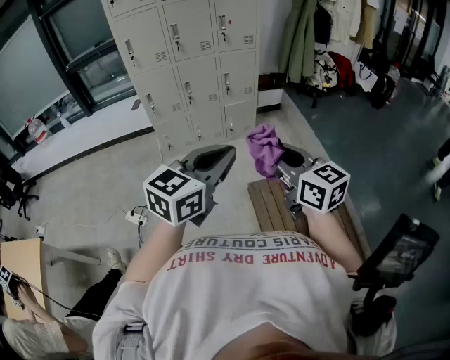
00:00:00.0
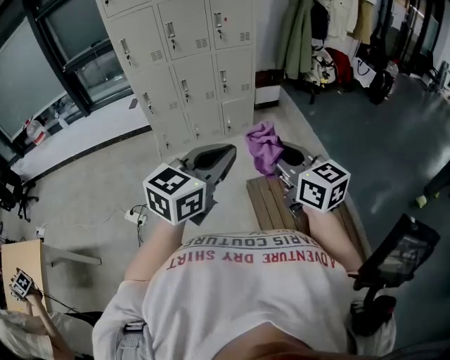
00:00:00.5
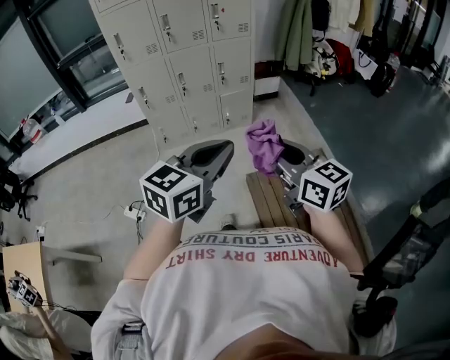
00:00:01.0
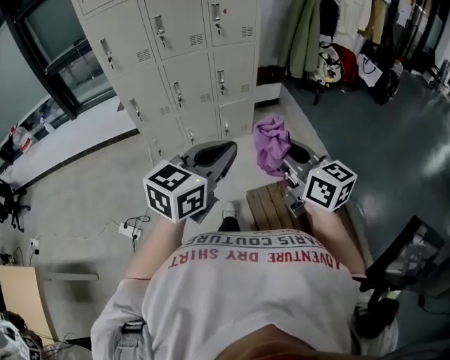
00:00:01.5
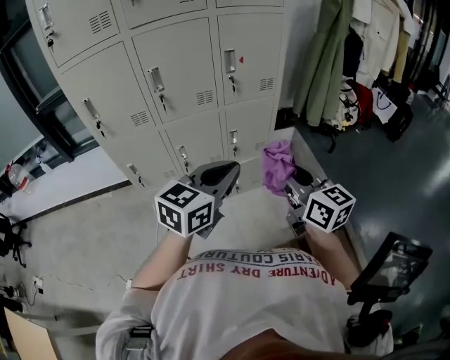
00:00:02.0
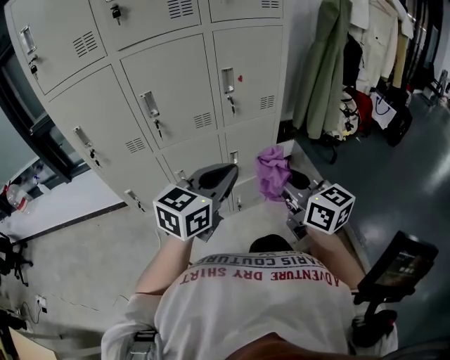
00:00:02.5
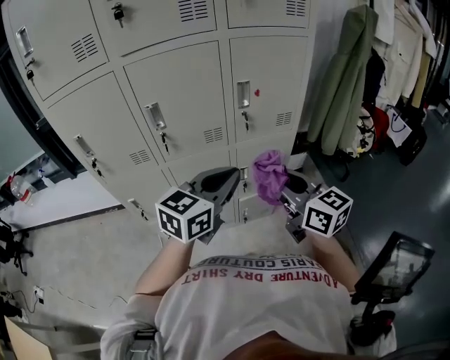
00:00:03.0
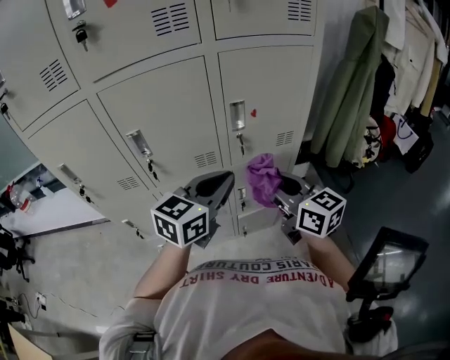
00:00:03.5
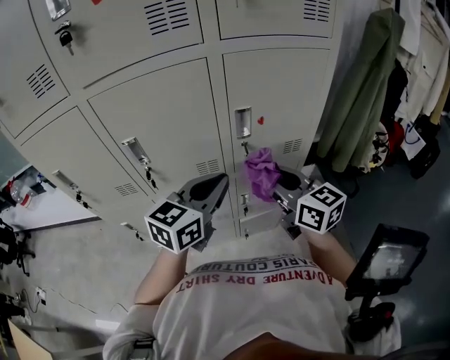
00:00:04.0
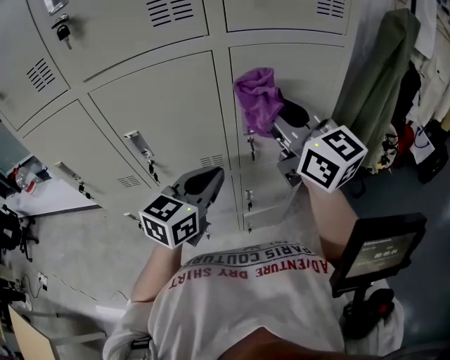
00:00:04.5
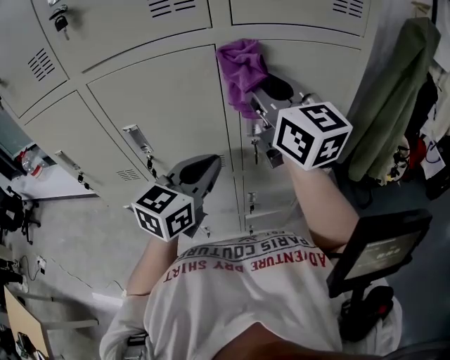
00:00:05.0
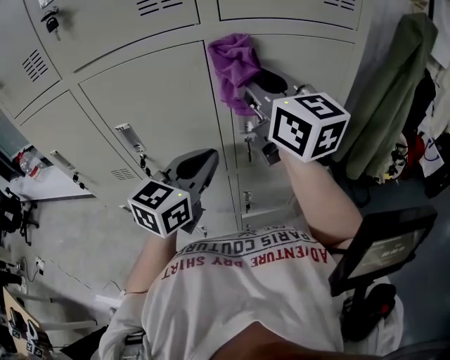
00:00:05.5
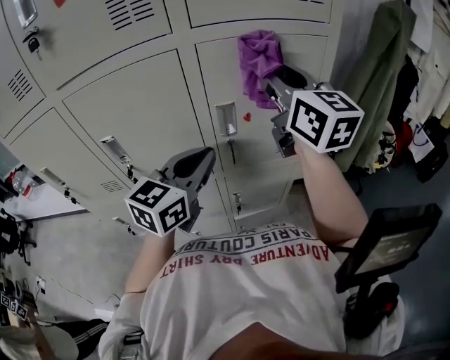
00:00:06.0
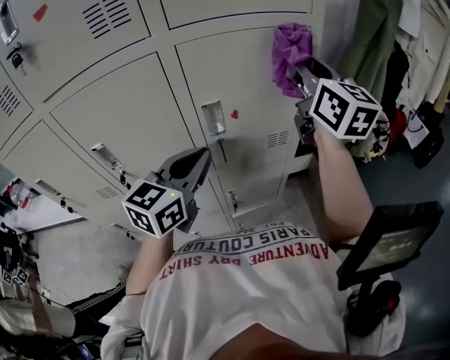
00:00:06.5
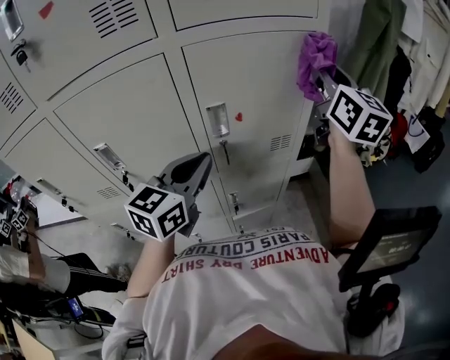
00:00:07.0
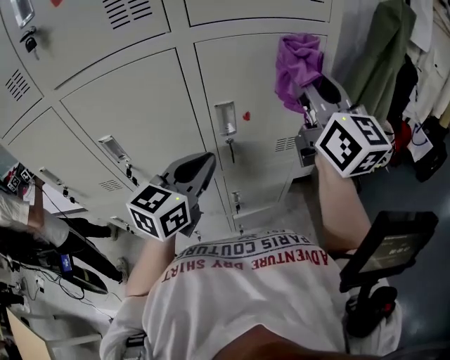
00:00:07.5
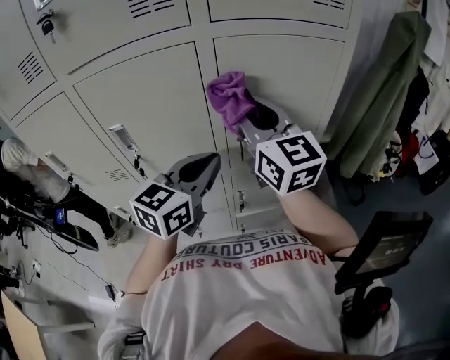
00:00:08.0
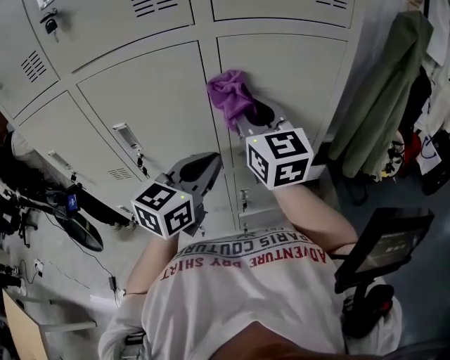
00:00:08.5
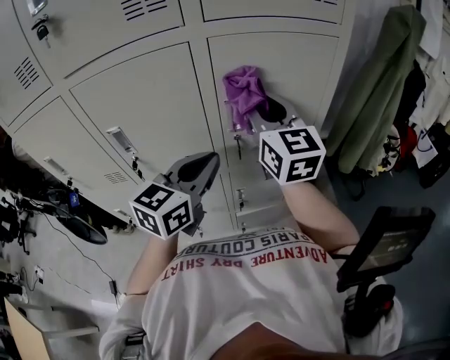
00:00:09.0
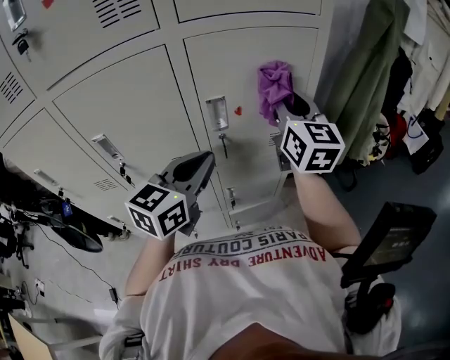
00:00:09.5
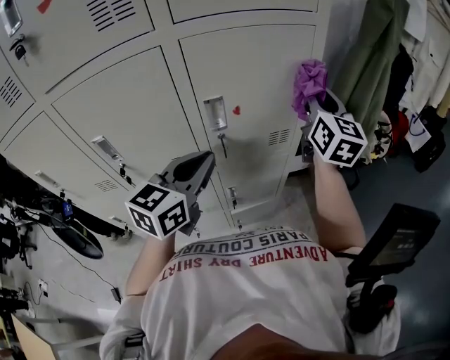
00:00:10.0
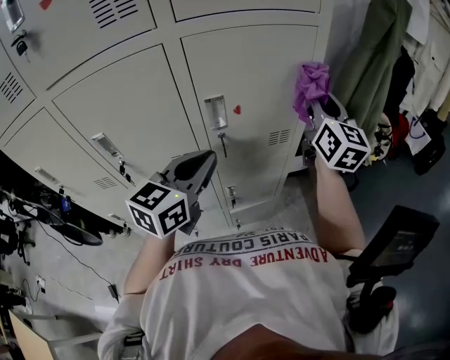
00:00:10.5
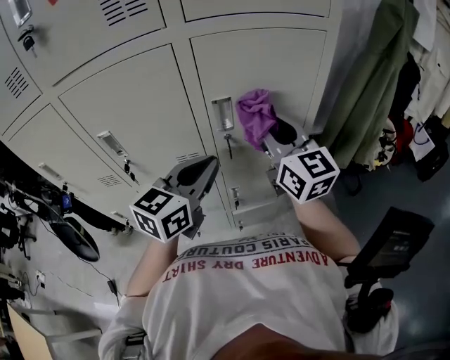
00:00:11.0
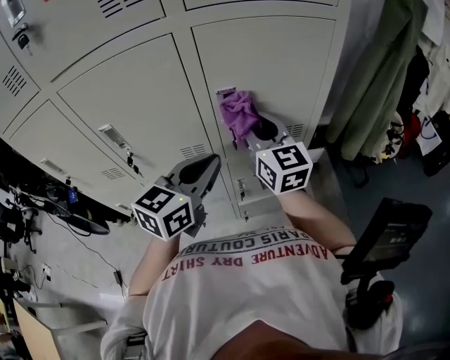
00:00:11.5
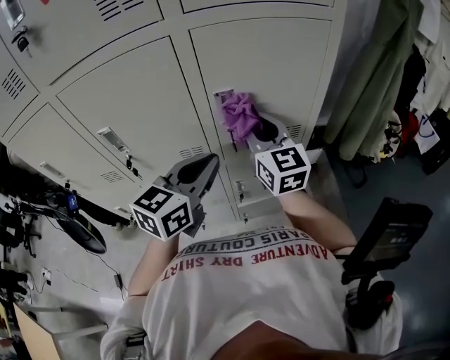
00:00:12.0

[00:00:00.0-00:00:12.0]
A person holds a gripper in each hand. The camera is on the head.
00:00:00.0 to 00:00:02.0: The pair of grippers is taken forward, approximately 50 cm.
00:00:02.0 to 00:00:04.0: The two grippers go roughly 35 cm forward.
00:00:04.0 to 00:00:06.0: The right gripper moves upward and forward, some 20 cm, and rotates some 20 degrees; the left gripper moves forward, about 5 cm.
00:00:06.0 to 00:00:08.0: The right gripper moves to the left and downward, roughly 10 cm.
00:00:08.0 to 00:00:10.0: The right gripper heads to the right, covering some 20 cm, and changes its angle by roughly 30 degrees.
00:00:10.0 to 00:00:12.0: The right gripper moves to the left and downward, about 20 cm, and rotates approximately 20 degrees.

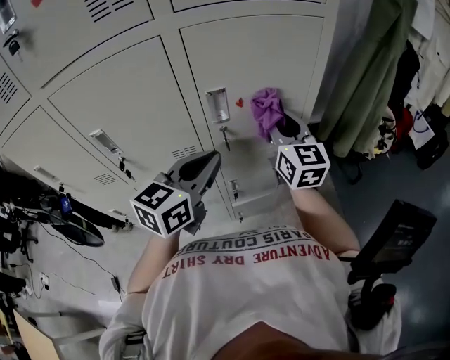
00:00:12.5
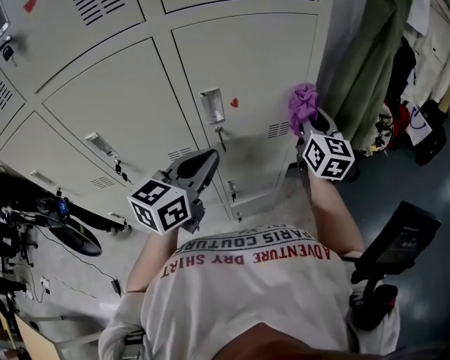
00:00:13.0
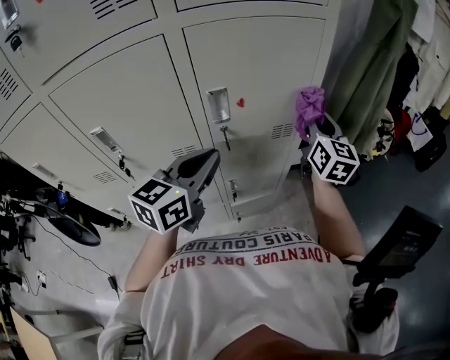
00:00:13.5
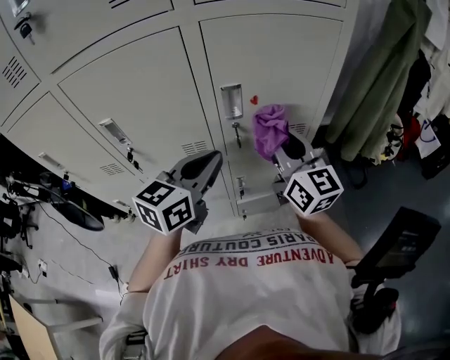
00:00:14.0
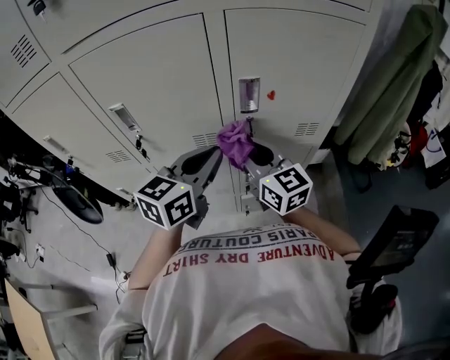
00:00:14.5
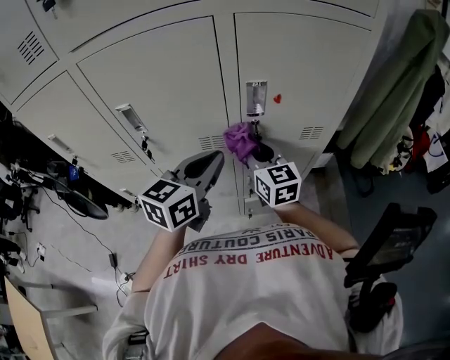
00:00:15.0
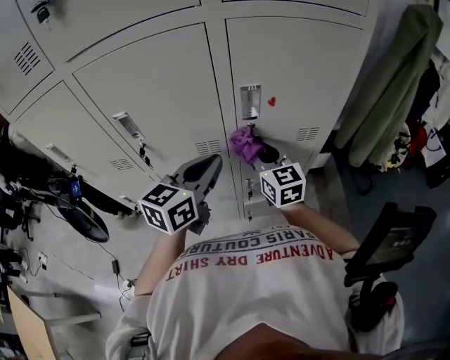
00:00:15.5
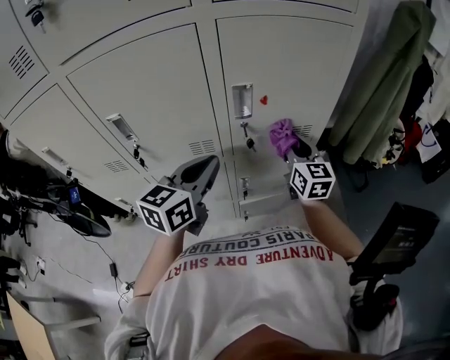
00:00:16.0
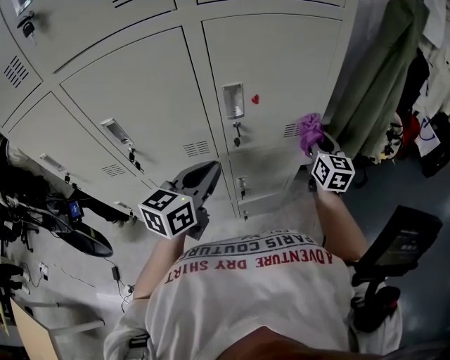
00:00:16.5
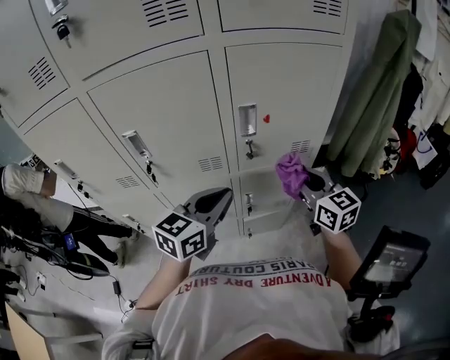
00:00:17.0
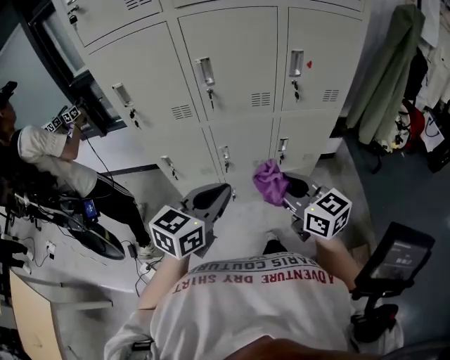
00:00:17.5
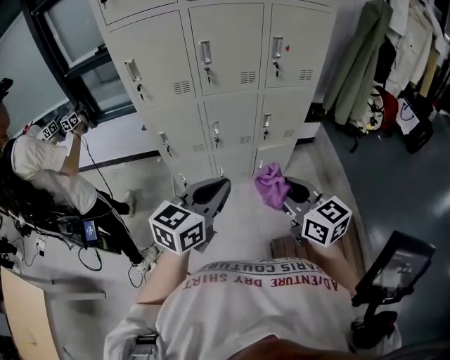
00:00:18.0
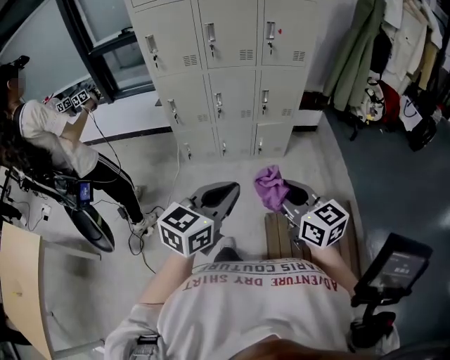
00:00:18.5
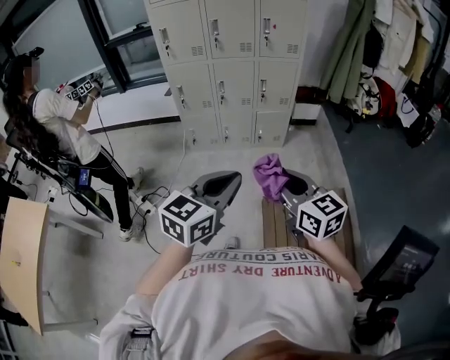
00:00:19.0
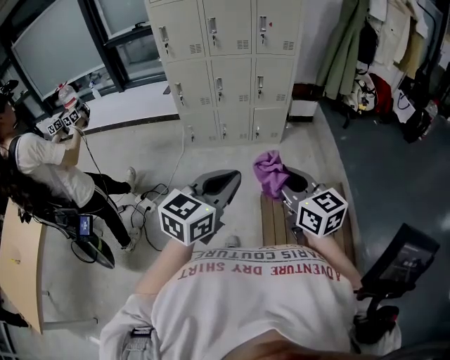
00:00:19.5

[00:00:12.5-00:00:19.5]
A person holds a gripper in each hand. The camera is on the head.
00:00:12.5 to 00:00:14.5: The right gripper shifts roughly 15 cm to the left, backward and downward, and turns by approximately 30 degrees. The left gripper heads to the left, covering approximately 5 cm.
00:00:14.5 to 00:00:16.0: The right gripper goes about 15 cm to the right and forward, and rotates roughly 30 degrees.
00:00:16.0 to 00:00:17.5: The left gripper heads backward, covering some 30 cm; the right gripper heads backward and to the left, covering roughly 40 cm, and changes its angle by about 30 degrees.
00:00:17.5 to 00:00:19.5: Both grippers are carried backward, about 60 cm.

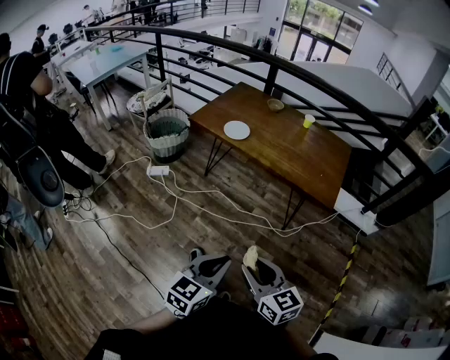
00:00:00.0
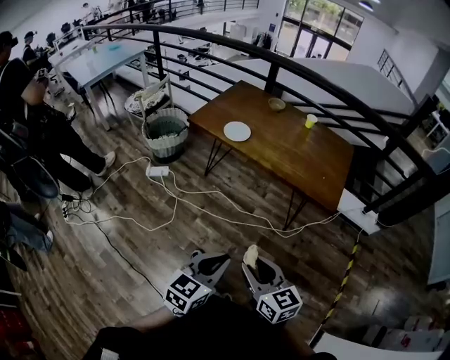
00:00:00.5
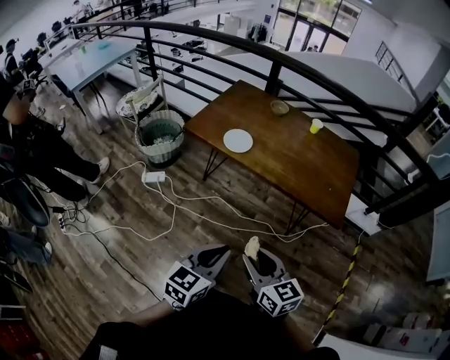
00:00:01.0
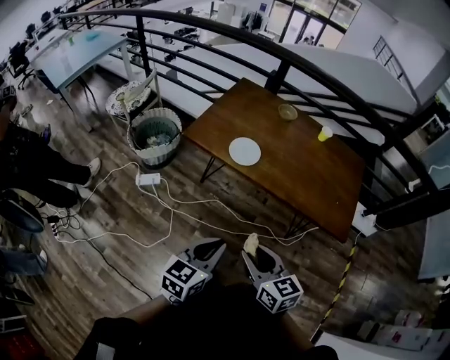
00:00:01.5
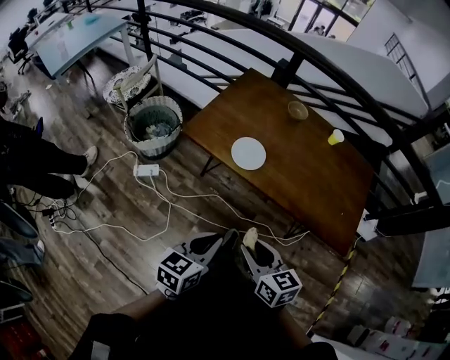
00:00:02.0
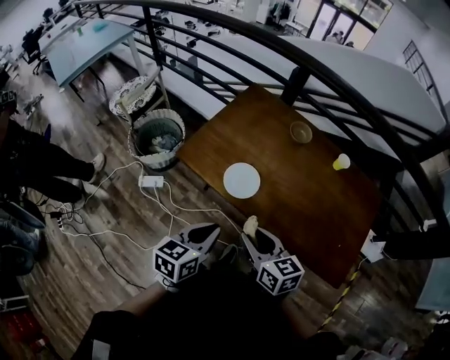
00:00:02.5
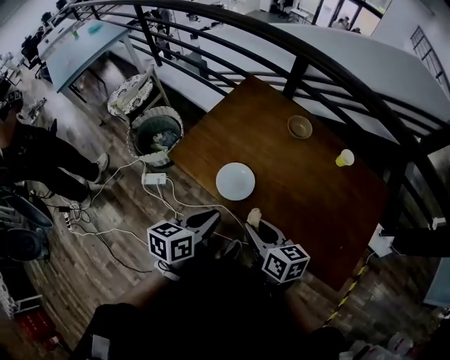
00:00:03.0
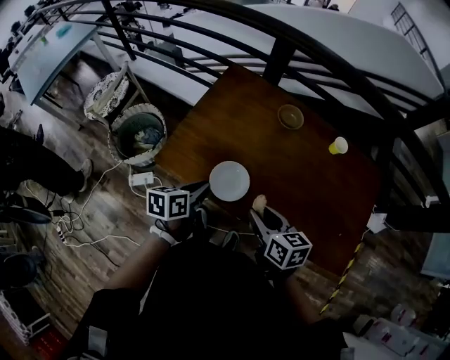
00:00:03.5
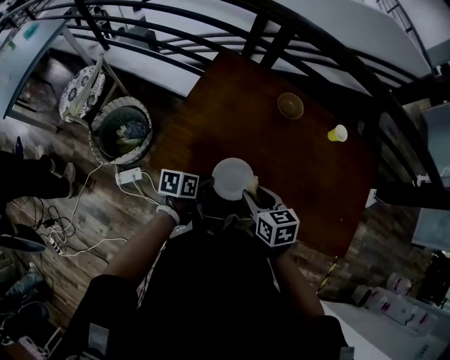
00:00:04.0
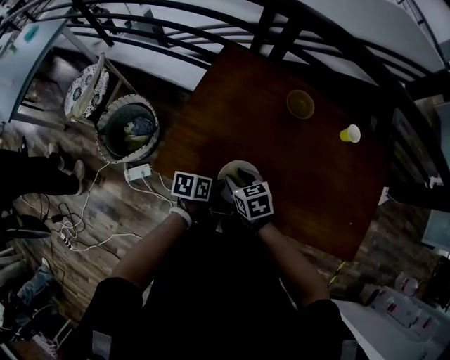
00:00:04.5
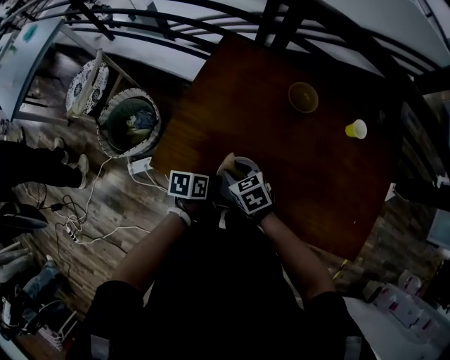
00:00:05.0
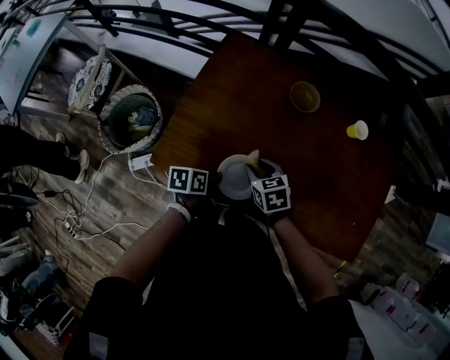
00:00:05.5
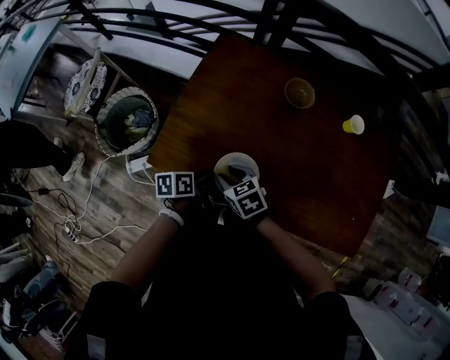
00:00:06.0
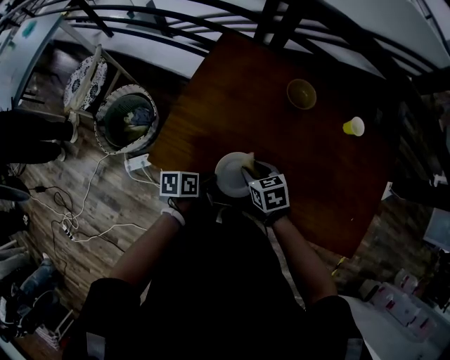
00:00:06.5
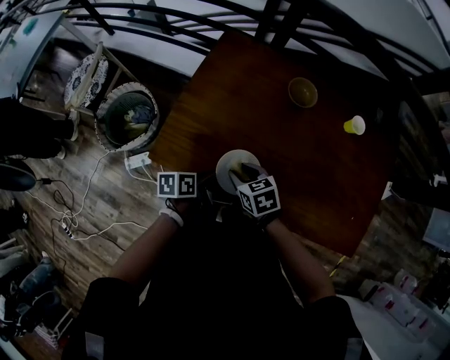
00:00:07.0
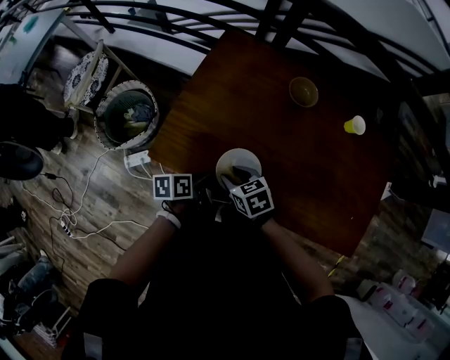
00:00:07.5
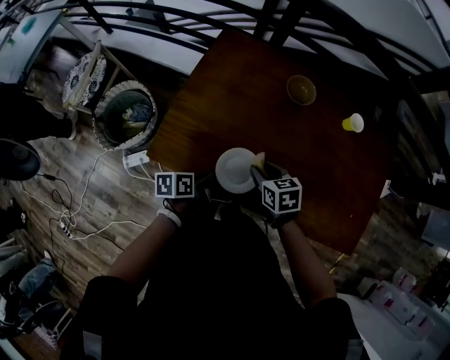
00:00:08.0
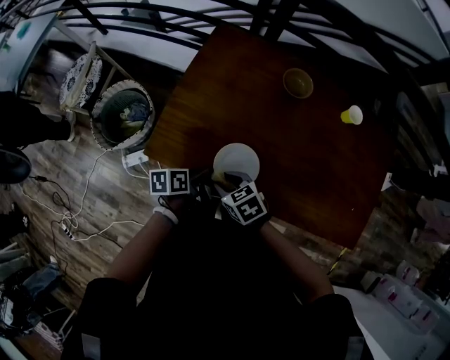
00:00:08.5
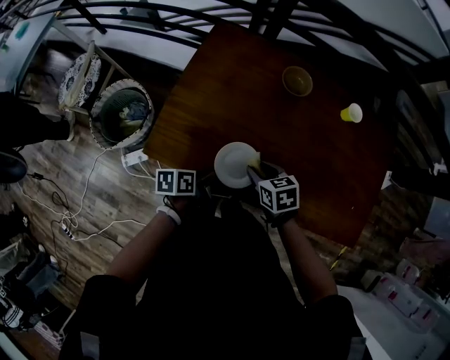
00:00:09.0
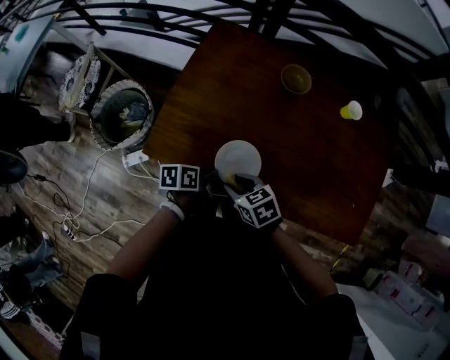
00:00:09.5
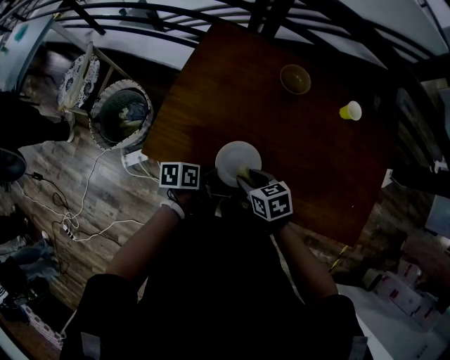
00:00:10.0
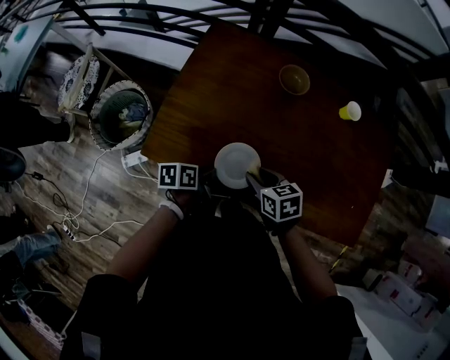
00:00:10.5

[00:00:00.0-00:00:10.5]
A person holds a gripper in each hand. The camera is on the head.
00:00:00.0 to 00:00:02.0: The pair of grippers is taken forward, approximately 40 cm.
00:00:02.0 to 00:00:04.0: The right gripper shifts about 35 cm forward. Meanwhile the left gripper moves forward and downward, approximately 40 cm, changes its angle by roughly 40 degrees, and opens its fingers.
00:00:04.0 to 00:00:06.5: The right gripper moves downward and forward, about 10 cm.
00:00:06.5 to 00:00:08.5: The right gripper goes left and right, some 10 cm each way, reversing 2 times.
00:00:08.5 to 00:00:10.5: The right gripper goes left and right, about 10 cm each way, reversing 2 times, and rotates some 20 degrees.
